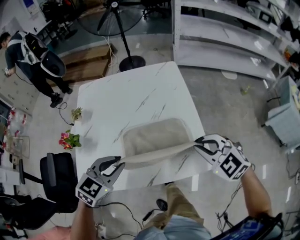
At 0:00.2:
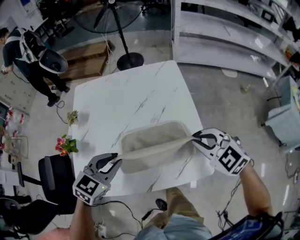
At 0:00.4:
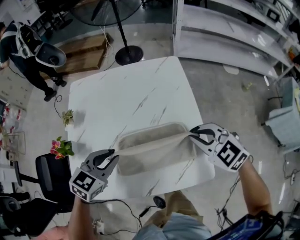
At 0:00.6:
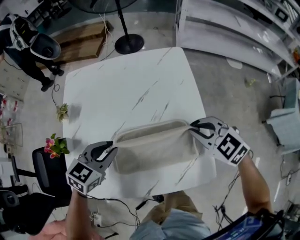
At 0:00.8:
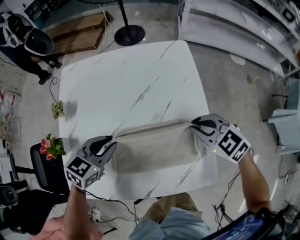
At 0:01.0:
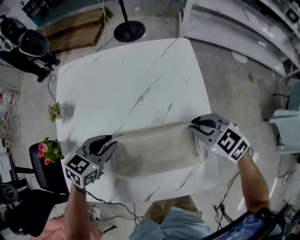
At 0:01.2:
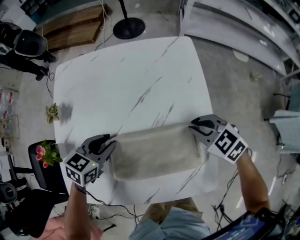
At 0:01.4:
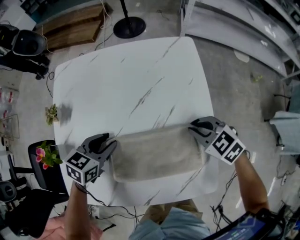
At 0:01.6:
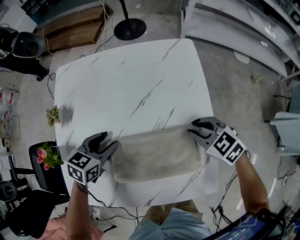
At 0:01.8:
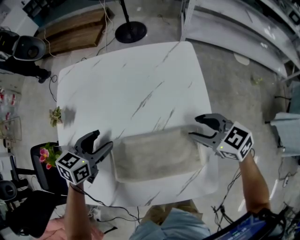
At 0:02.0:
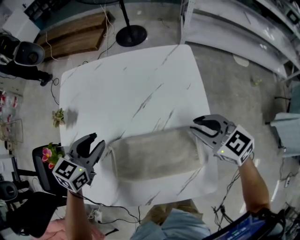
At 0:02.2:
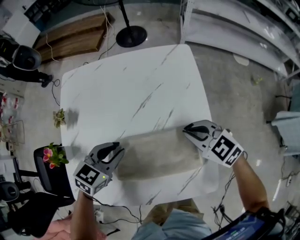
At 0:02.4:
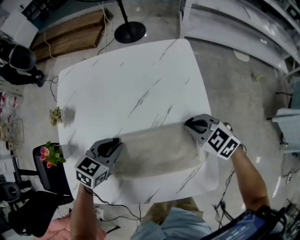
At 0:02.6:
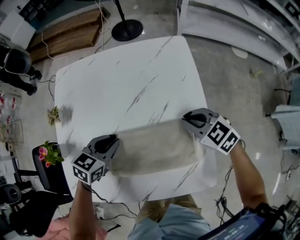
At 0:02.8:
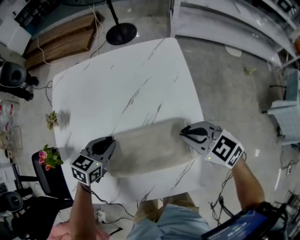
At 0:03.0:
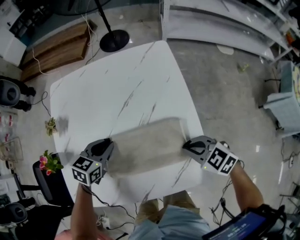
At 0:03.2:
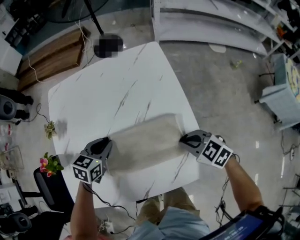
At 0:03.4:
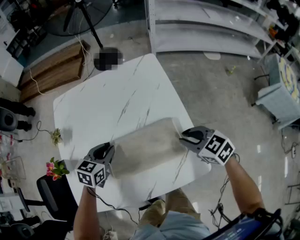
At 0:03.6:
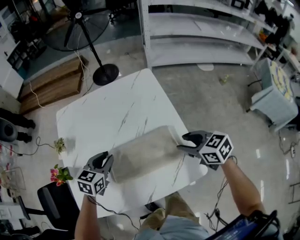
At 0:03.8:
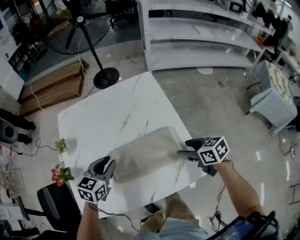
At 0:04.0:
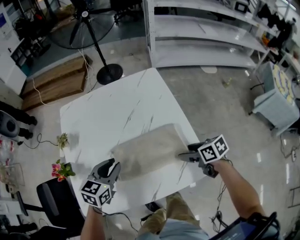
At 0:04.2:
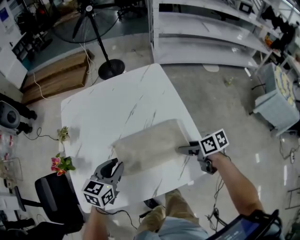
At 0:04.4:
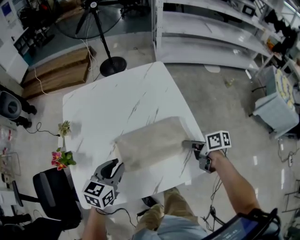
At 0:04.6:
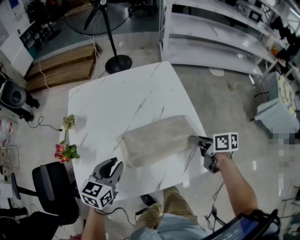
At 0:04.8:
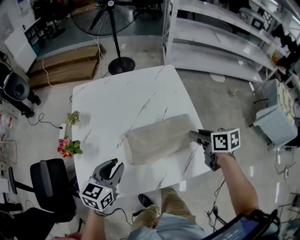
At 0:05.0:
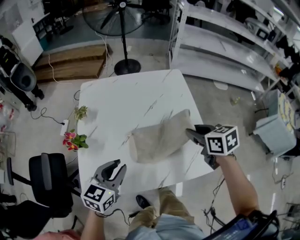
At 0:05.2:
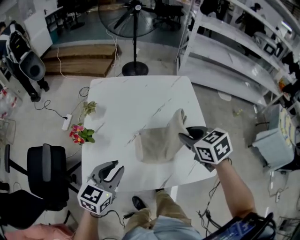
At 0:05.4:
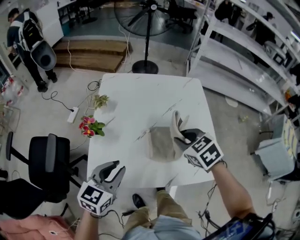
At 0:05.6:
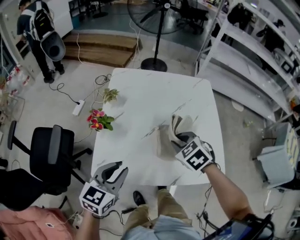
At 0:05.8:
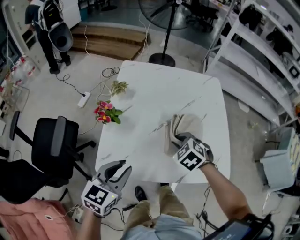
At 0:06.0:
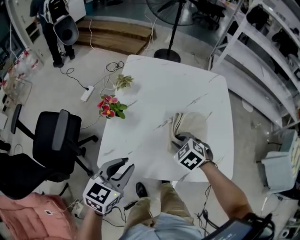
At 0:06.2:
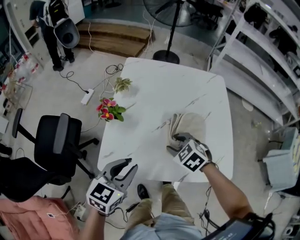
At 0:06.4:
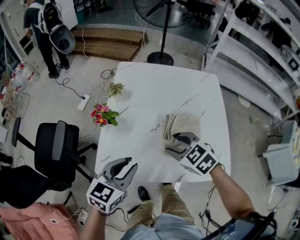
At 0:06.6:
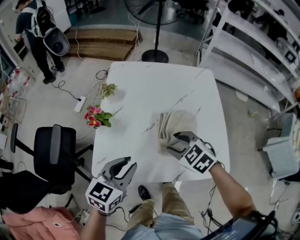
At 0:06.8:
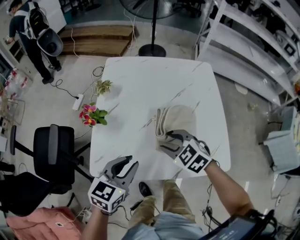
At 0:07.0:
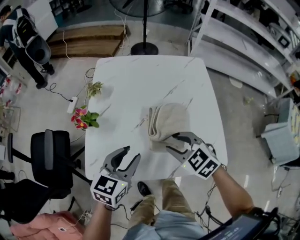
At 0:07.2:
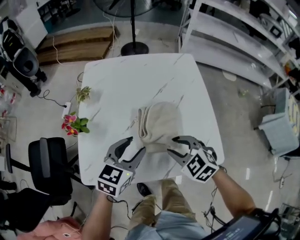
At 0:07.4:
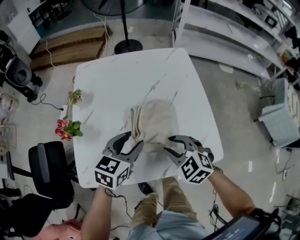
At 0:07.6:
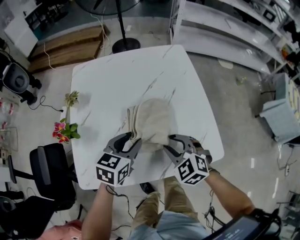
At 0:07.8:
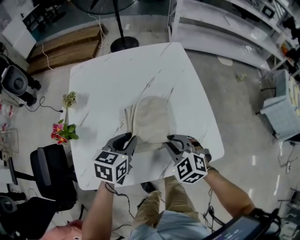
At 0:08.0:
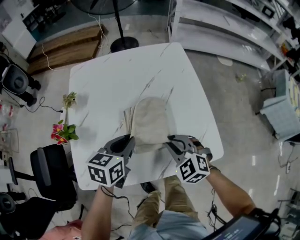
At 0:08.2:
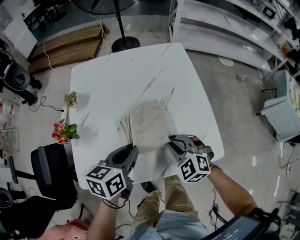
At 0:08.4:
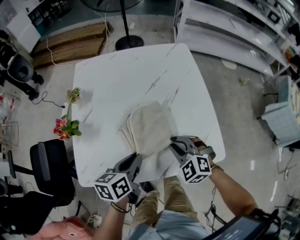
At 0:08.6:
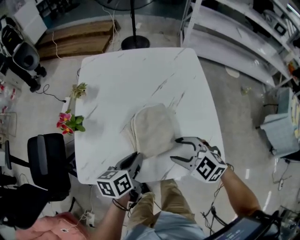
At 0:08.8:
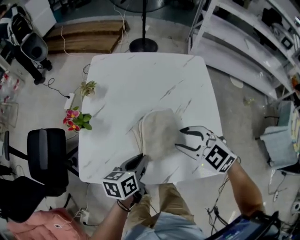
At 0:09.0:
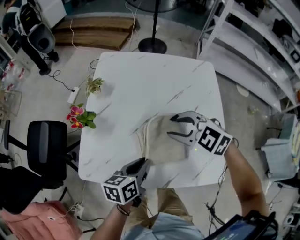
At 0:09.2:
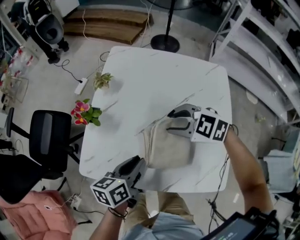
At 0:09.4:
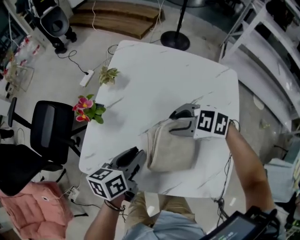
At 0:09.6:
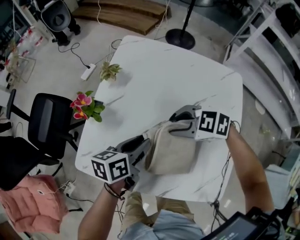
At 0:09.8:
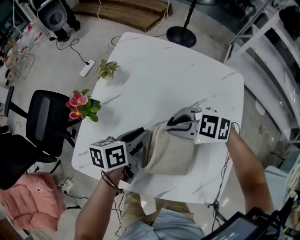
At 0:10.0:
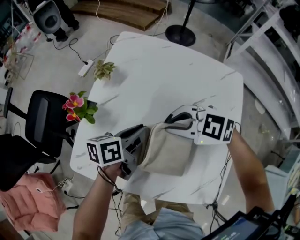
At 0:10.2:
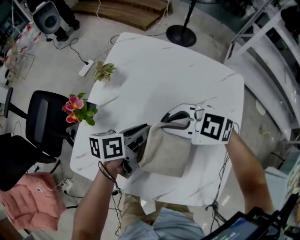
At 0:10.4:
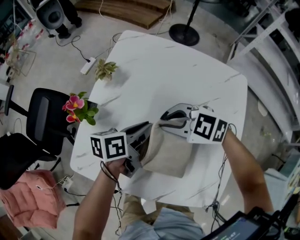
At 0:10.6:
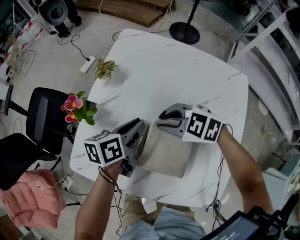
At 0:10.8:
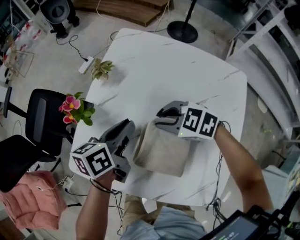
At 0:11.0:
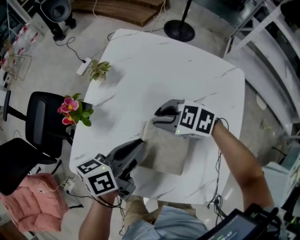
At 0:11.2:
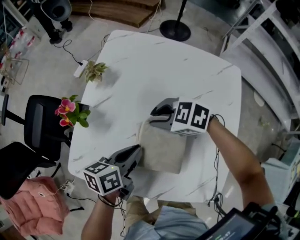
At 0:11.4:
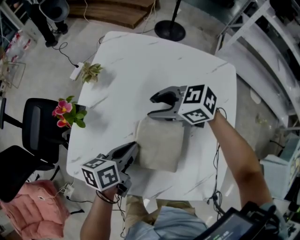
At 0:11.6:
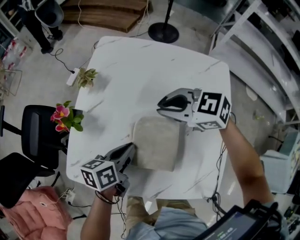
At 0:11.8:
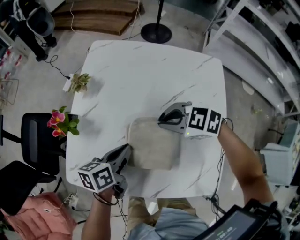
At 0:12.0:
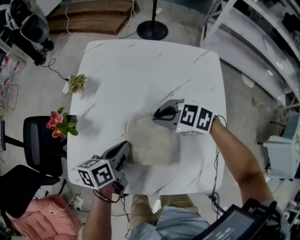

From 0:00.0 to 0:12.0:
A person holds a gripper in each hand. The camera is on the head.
From 0:00.0 to 0:01.6: The two grippers go some 20 cm forward and downward. The right gripper turns by roughly 20 degrees. Meanwhile the left gripper swivels about 30 degrees.
From 0:01.6 to 0:03.0: The left gripper moves some 10 cm upward and comes back, and closes; the right gripper goes roughly 10 cm backward, and opens, then closes again.
From 0:03.0 to 0:04.4: The left gripper heads backward and upward, covering approximately 10 cm. The right gripper travels upward and back again, roughly 5 cm each way, twists approximately 70 degrees clockwise, seen from behind, and opens up.
From 0:04.4 to 0:06.0: The right gripper travels to the left by some 30 cm, and rolls counterclockwise, seen from behind, by about 90 degrees. Meanwhile the left gripper moves to the left and backward, roughly 20 cm.
From 0:06.0 to 0:07.6: The right gripper goes roughly 10 cm to the right, and turns by roughly 20 degrees; the left gripper moves to the right and forward, some 20 cm.
From 0:07.6 to 0:09.0: The left gripper ends up roughly 5 cm from where it was, and changes its angle by some 40 degrees. The right gripper changes place by about 15 cm, turns by roughly 30 degrees, and closes, then opens again.
From 0:09.0 to 0:10.4: The right gripper changes place by about 10 cm, turns by approximately 30 degrees, and closes up; the left gripper ends up approximately 15 cm from where it was.
From 0:10.4 to 0:12.0: The left gripper moves some 10 cm, while the right gripper goes up and down, about 10 cm each way, reversing 2 times, and opens, then closes again.

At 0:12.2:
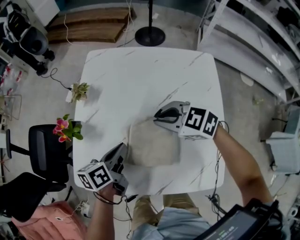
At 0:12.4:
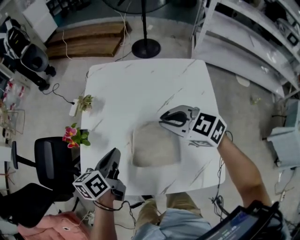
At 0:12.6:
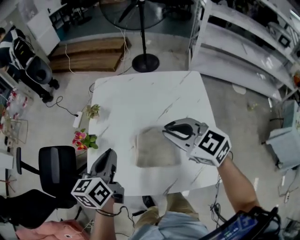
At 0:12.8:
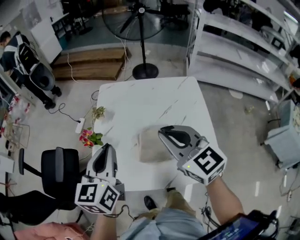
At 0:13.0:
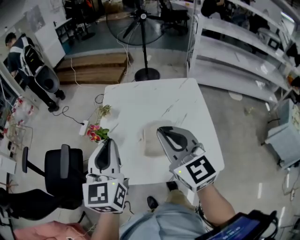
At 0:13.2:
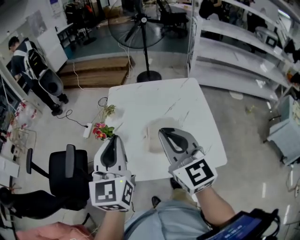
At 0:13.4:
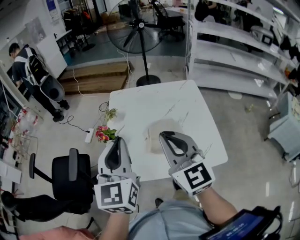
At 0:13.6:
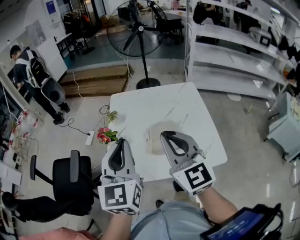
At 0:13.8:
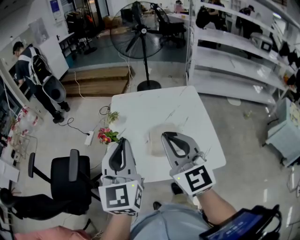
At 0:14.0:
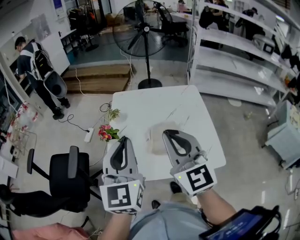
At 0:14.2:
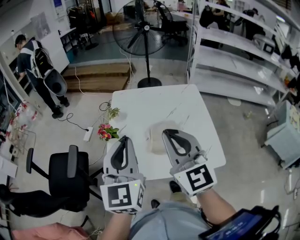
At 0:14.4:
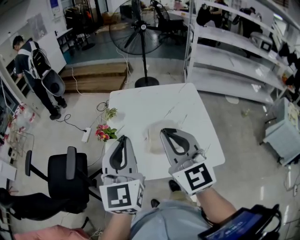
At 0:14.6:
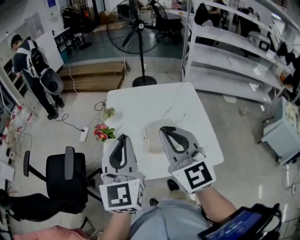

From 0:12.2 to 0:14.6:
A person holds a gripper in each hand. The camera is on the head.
From 0:12.2 to 0:13.4: The left gripper heads upward, covering some 30 cm, and turns by some 60 degrees. Meanwhile the right gripper shifts approximately 30 cm upward and backward, and angles its fingers upward, by approximately 40 degrees.
From 0:13.4 to 0:14.6: The grippers stay close to where they were, moving slightly.

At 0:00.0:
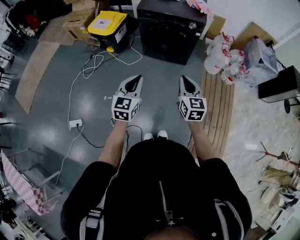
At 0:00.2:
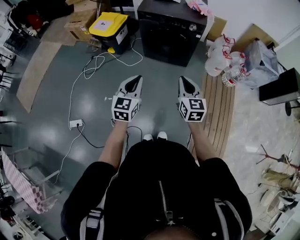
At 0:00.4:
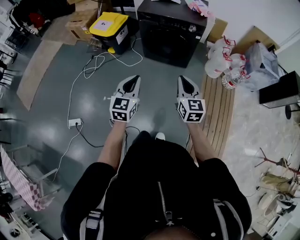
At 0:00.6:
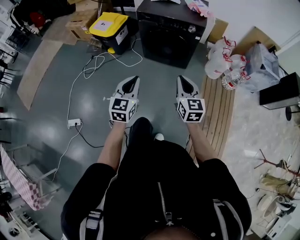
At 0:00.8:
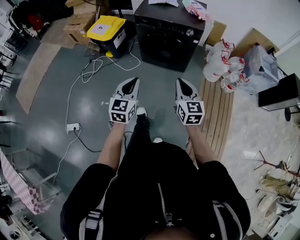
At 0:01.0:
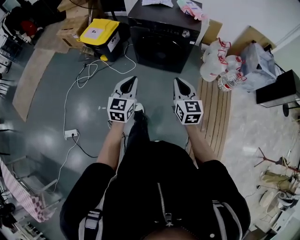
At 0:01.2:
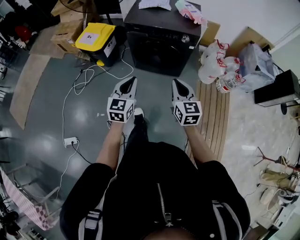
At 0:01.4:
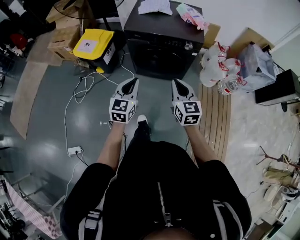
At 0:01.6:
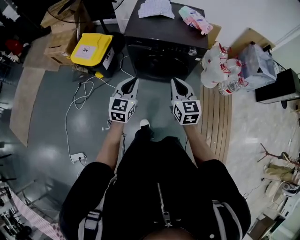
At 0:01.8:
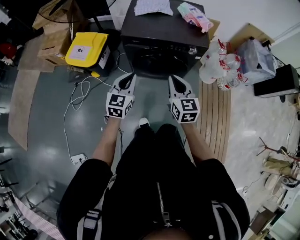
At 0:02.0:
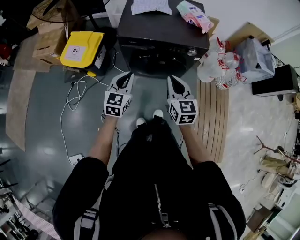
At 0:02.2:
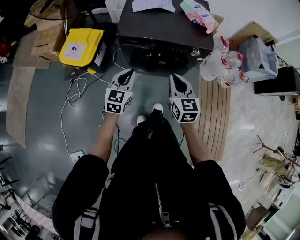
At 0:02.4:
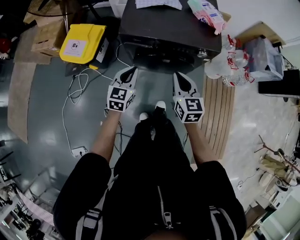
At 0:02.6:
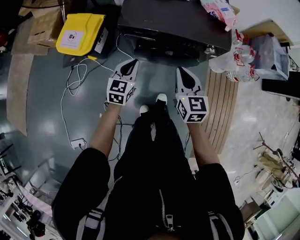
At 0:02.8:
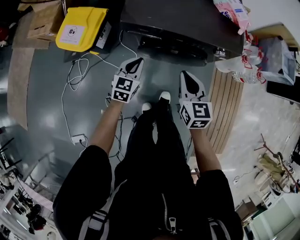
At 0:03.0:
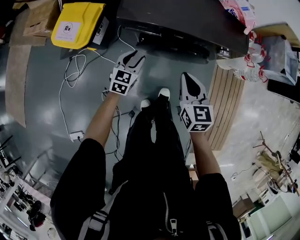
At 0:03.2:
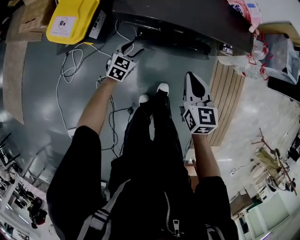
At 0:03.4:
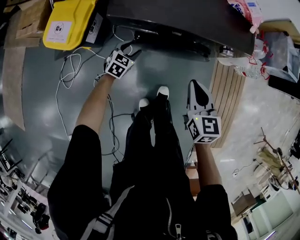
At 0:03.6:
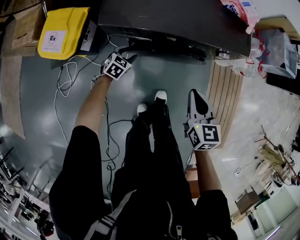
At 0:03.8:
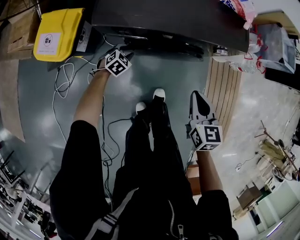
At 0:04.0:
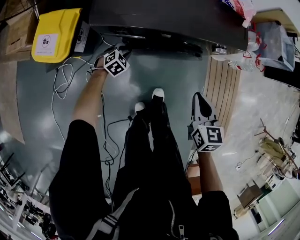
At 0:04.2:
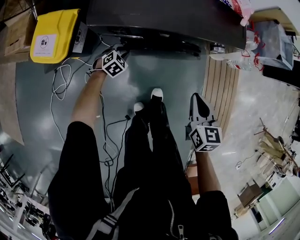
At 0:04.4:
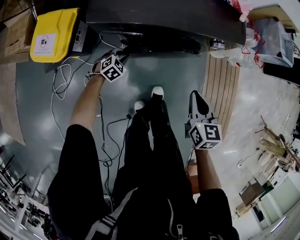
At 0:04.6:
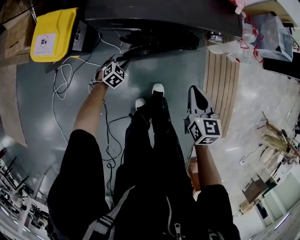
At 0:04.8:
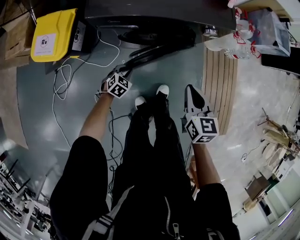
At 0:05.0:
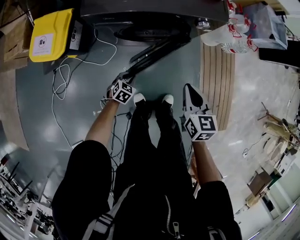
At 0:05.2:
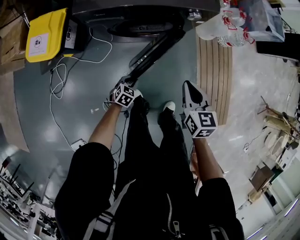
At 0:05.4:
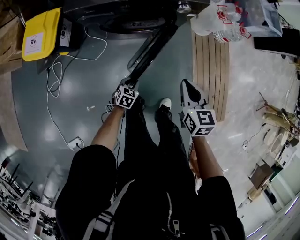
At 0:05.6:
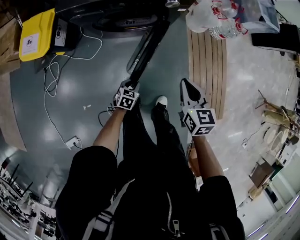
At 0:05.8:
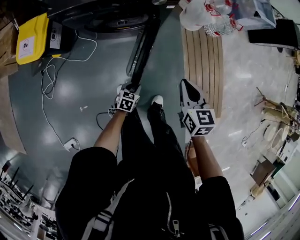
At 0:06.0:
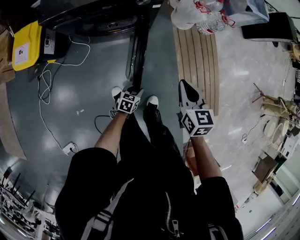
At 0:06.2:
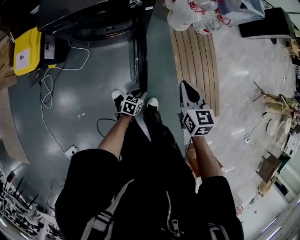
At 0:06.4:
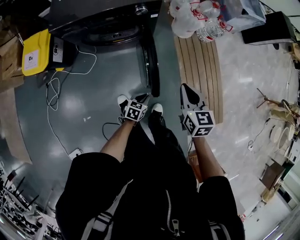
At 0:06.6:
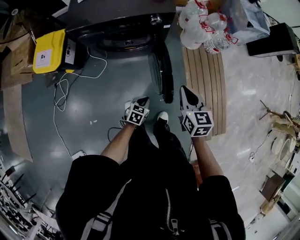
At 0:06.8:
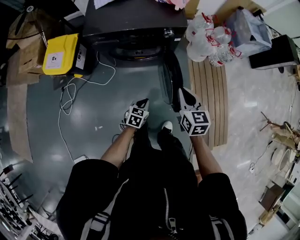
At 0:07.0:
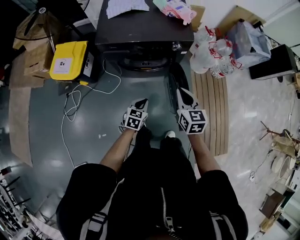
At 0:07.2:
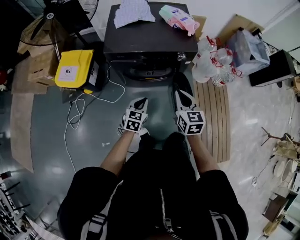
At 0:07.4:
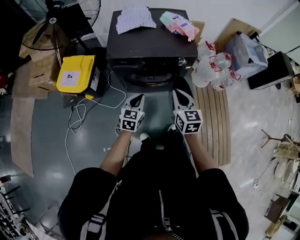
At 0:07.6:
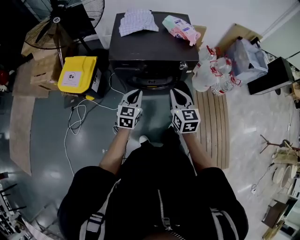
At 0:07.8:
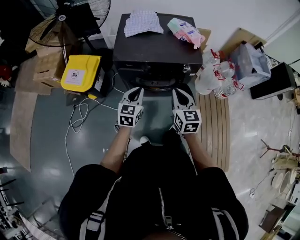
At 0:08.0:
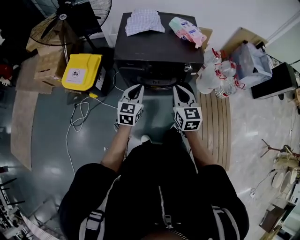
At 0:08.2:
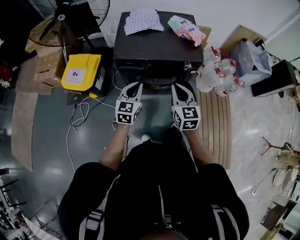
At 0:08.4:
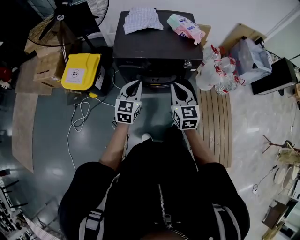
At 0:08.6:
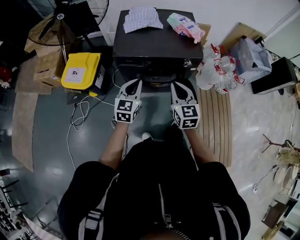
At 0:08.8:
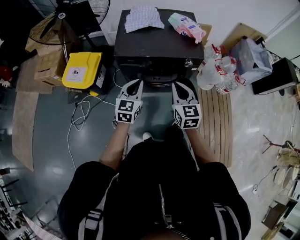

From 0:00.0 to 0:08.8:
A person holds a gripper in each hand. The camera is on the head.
From 0:00.0 to 0:01.4: The grippers both shift forward by roughly 25 cm.
From 0:01.4 to 0:03.0: The two grippers go approximately 35 cm forward and downward. The left gripper rotates about 20 degrees, and opens its fingers.
From 0:03.0 to 0:04.4: The right gripper travels to the right and downward by roughly 10 cm. Meanwhile the left gripper shifts roughly 20 cm downward, and rotates some 40 degrees.
From 0:04.4 to 0:05.8: The left gripper travels to the right and backward by approximately 40 cm, and changes its angle by about 40 degrees; the right gripper shifts approximately 20 cm to the right and backward.
From 0:05.8 to 0:07.4: The right gripper goes approximately 25 cm to the left and upward. The left gripper heads upward and to the left, covering about 40 cm, changes its angle by roughly 30 degrees, and closes its fingers.
From 0:07.4 to 0:08.8: The left gripper moves upward, some 10 cm, while the right gripper shifts by some 5 cm.
